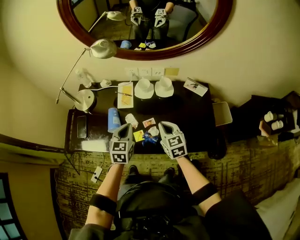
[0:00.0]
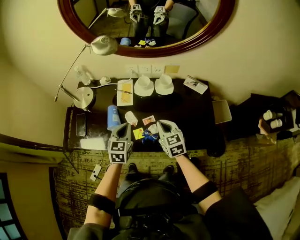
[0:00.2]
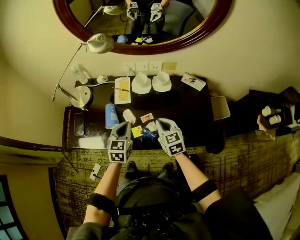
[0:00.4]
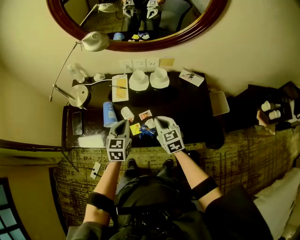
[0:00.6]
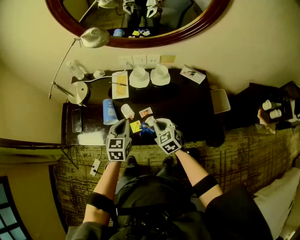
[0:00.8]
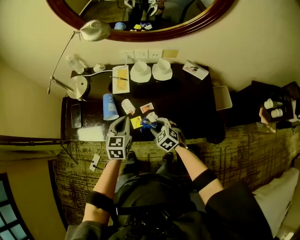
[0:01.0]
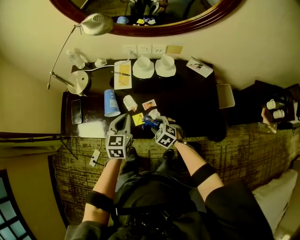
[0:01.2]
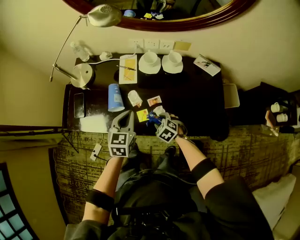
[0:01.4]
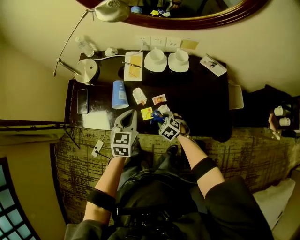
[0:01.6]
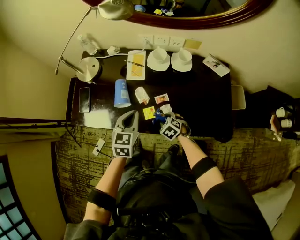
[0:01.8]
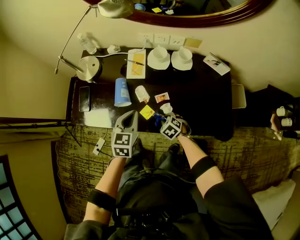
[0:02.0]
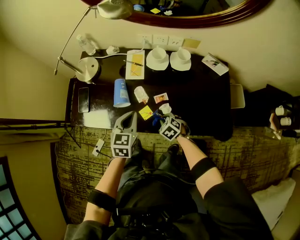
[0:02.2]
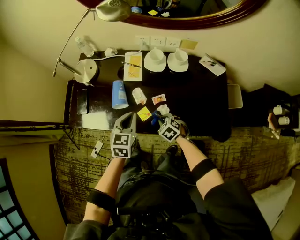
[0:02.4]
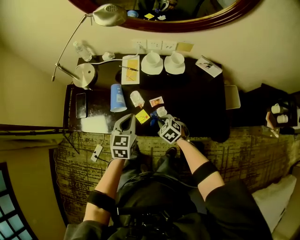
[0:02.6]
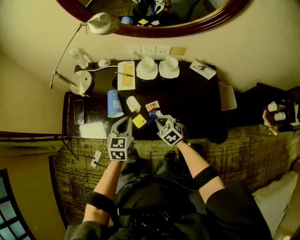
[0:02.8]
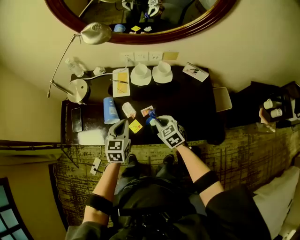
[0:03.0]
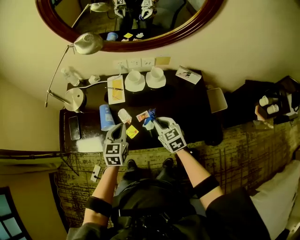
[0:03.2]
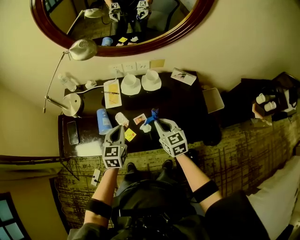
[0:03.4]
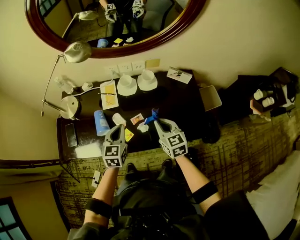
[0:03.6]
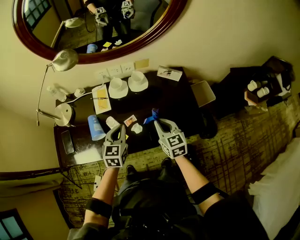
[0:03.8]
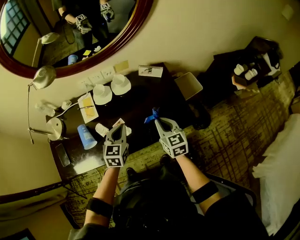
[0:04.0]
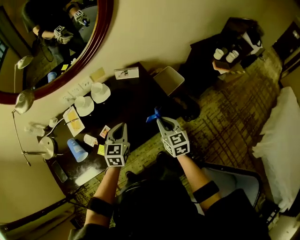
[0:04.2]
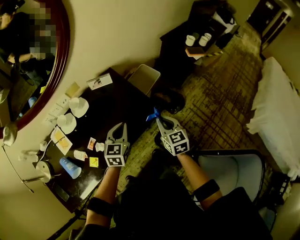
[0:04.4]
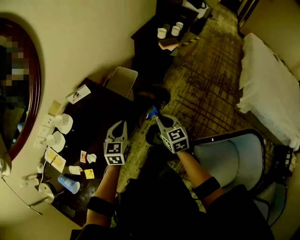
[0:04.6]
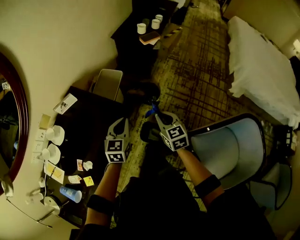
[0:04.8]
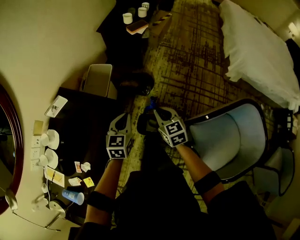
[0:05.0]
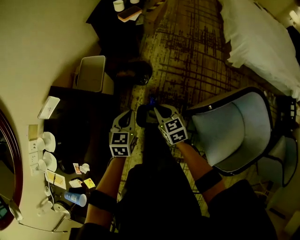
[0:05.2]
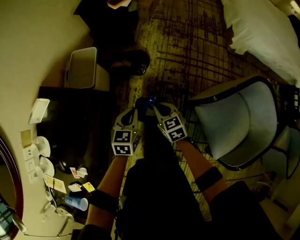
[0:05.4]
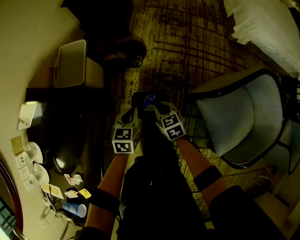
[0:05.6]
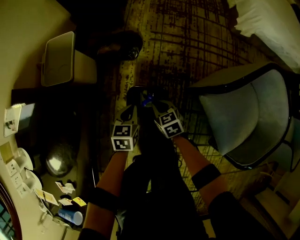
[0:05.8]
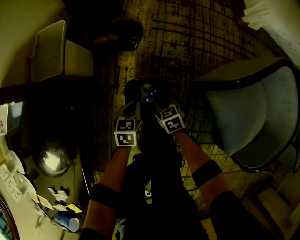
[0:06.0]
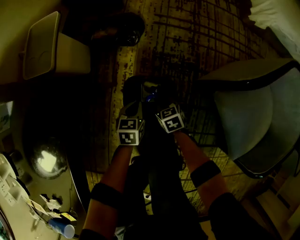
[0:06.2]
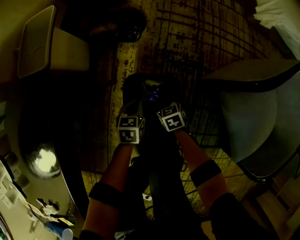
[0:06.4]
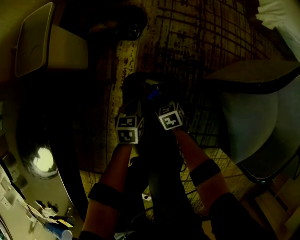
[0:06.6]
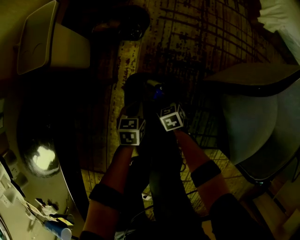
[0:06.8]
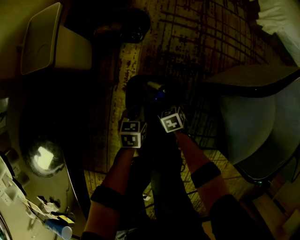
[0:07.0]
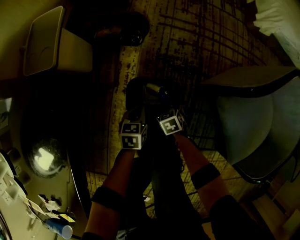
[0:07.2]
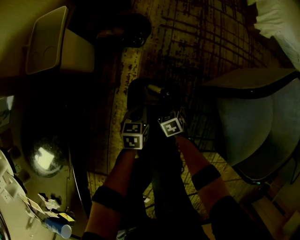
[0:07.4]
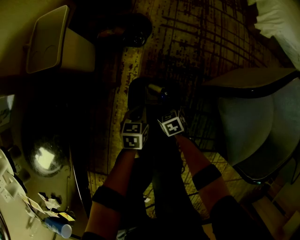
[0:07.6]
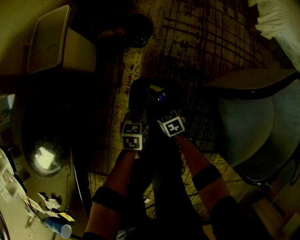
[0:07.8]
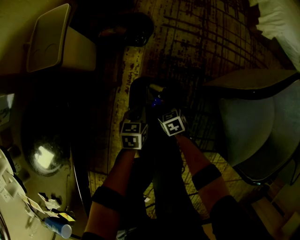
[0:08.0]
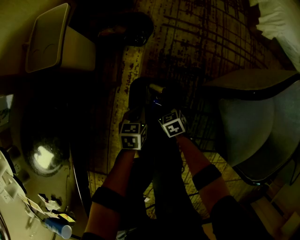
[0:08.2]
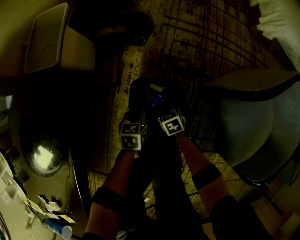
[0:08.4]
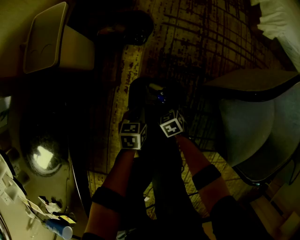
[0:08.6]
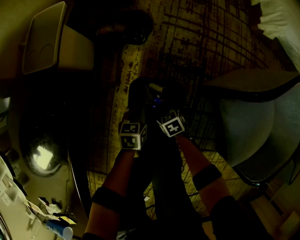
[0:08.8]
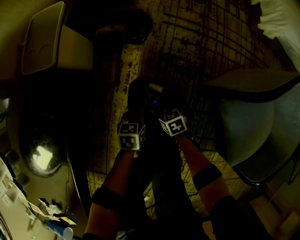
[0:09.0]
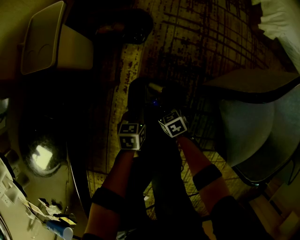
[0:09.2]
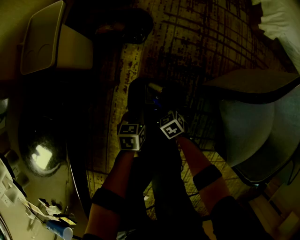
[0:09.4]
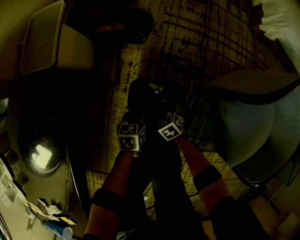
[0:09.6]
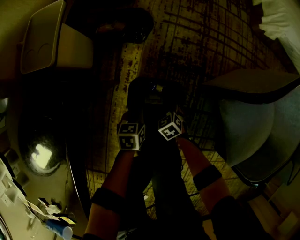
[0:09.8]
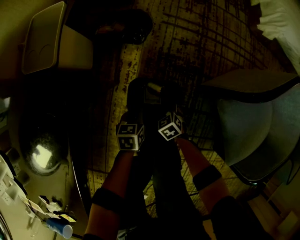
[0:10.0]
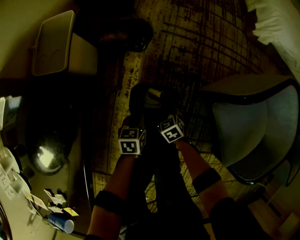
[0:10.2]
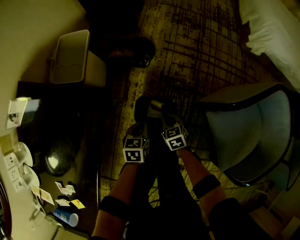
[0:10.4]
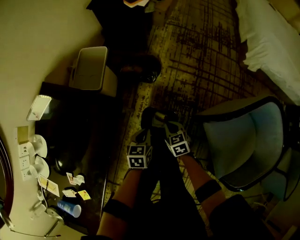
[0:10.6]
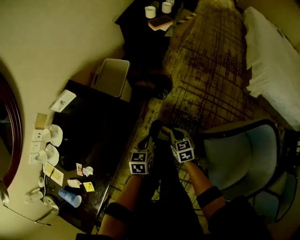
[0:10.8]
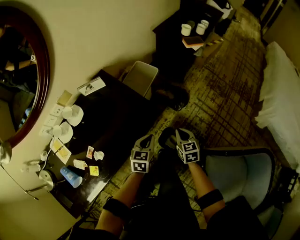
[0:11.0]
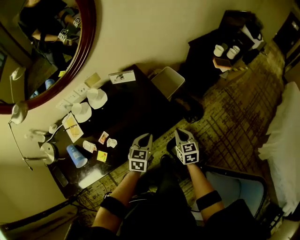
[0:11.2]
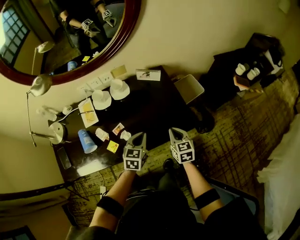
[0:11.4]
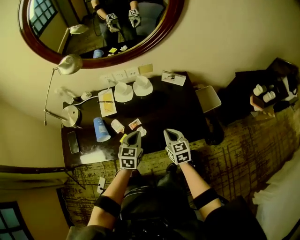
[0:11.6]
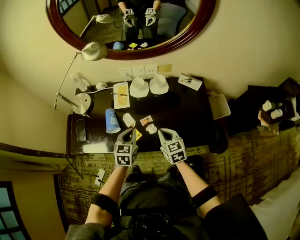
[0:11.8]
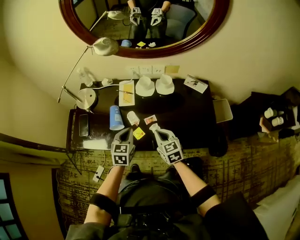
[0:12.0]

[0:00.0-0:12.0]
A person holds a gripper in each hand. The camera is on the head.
0:00.0 to 0:01.6: The right gripper heads downward, covering approximately 25 cm, angles its fingers downward, by some 40 degrees, and opens its fingers. Meanwhile the left gripper ends up about 5 cm from where it was.
0:01.6 to 0:03.0: The right gripper travels upward by approximately 15 cm, rotates approximately 30 degrees, and closes up.
0:03.0 to 0:04.4: The right gripper moves about 40 cm, and rotates about 60 degrees. The left gripper moves roughly 35 cm, and swivels some 40 degrees.
0:04.4 to 0:06.0: The grippers both shift downward by about 50 cm. The right gripper swivels approximately 40 degrees. Meanwhile the left gripper turns by about 50 degrees.
0:06.0 to 0:07.6: Both grippers move downward, some 10 cm. The right gripper opens its fingers.
0:07.6 to 0:09.0: The right gripper closes.
0:09.0 to 0:10.4: The two grippers go roughly 20 cm upward. The right gripper opens and closes again.
0:10.4 to 0:12.0: Both grippers are carried approximately 60 cm. The left gripper turns by roughly 80 degrees. The right gripper rotates approximately 80 degrees.

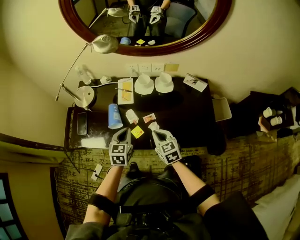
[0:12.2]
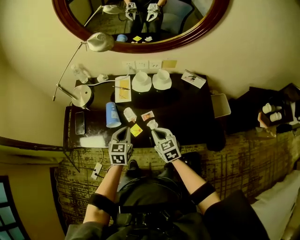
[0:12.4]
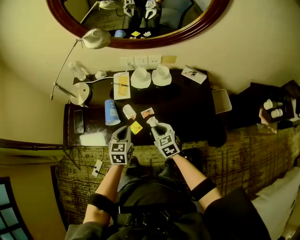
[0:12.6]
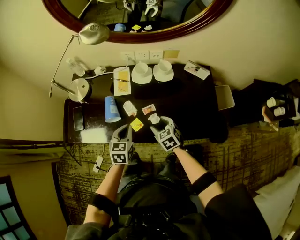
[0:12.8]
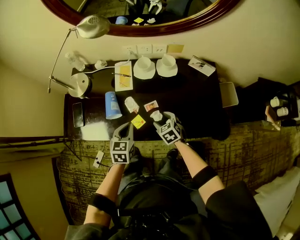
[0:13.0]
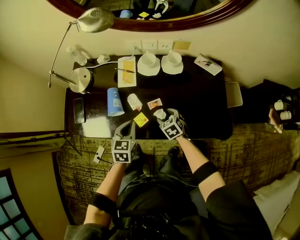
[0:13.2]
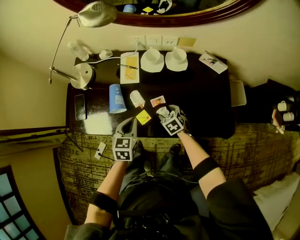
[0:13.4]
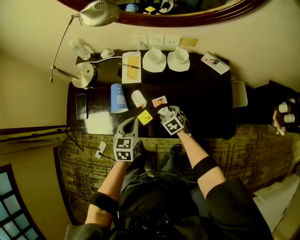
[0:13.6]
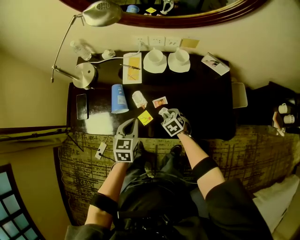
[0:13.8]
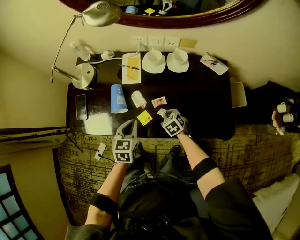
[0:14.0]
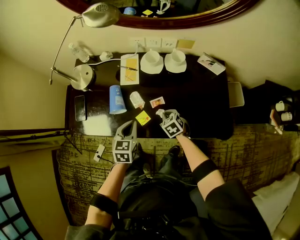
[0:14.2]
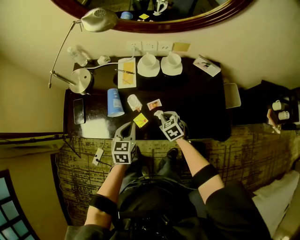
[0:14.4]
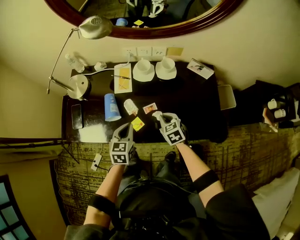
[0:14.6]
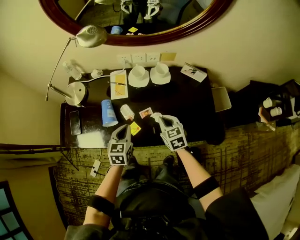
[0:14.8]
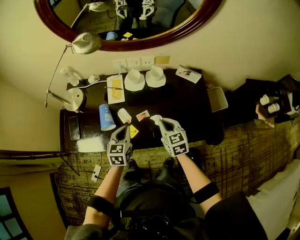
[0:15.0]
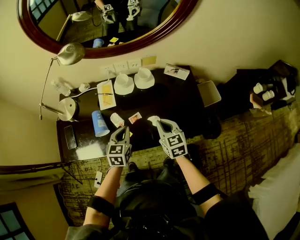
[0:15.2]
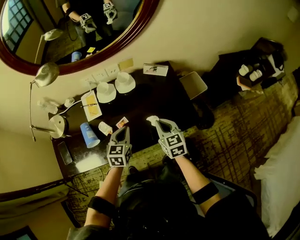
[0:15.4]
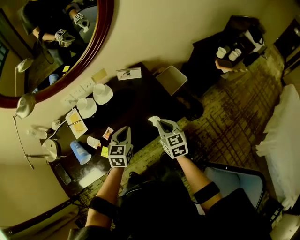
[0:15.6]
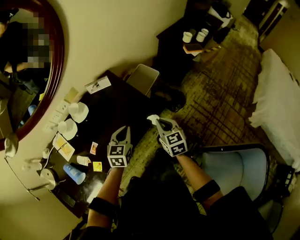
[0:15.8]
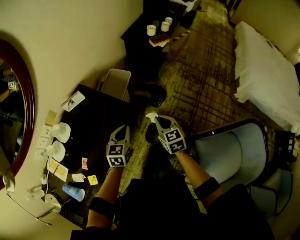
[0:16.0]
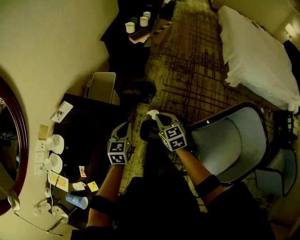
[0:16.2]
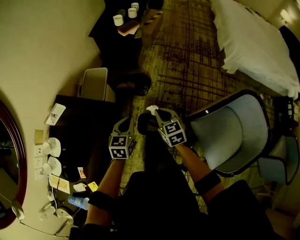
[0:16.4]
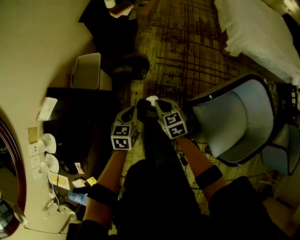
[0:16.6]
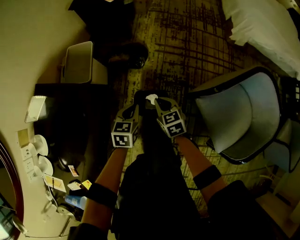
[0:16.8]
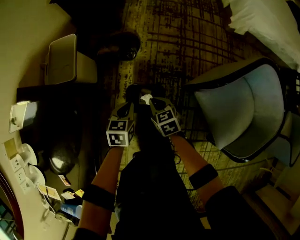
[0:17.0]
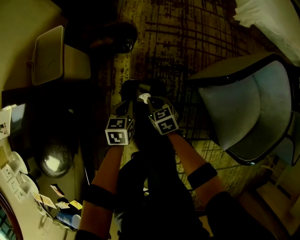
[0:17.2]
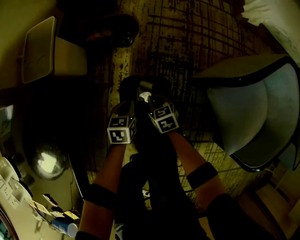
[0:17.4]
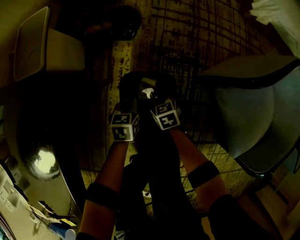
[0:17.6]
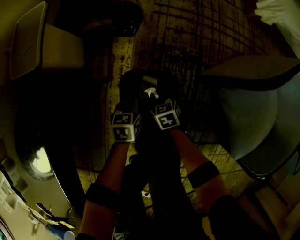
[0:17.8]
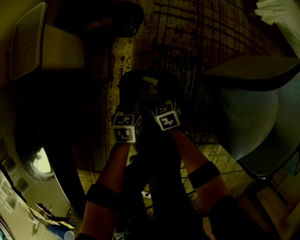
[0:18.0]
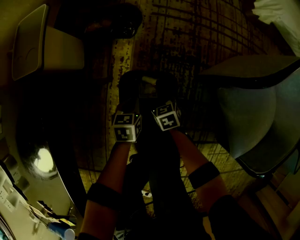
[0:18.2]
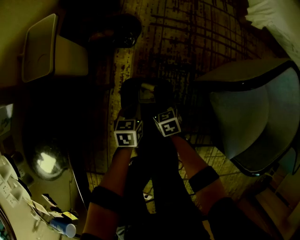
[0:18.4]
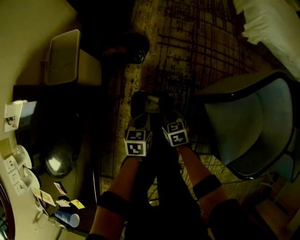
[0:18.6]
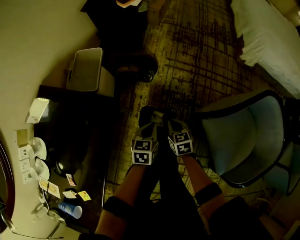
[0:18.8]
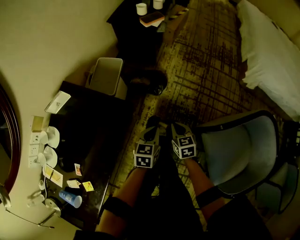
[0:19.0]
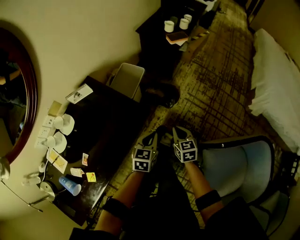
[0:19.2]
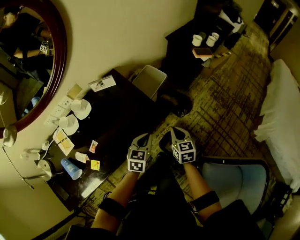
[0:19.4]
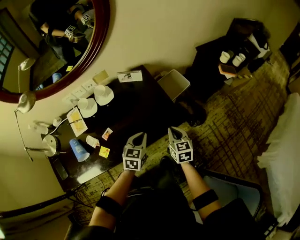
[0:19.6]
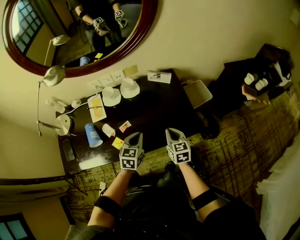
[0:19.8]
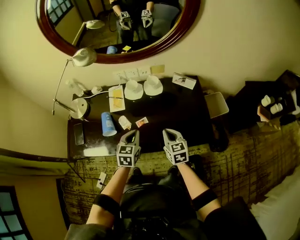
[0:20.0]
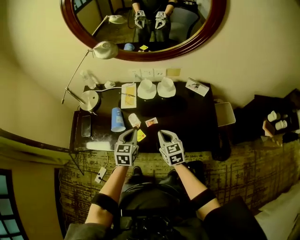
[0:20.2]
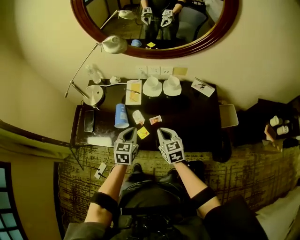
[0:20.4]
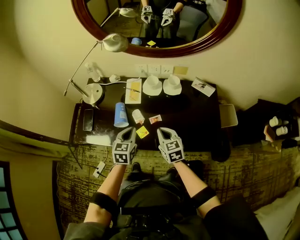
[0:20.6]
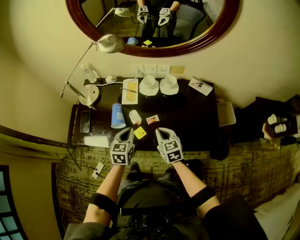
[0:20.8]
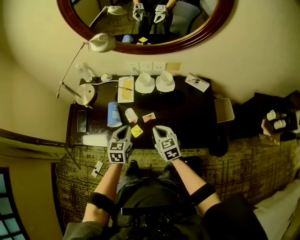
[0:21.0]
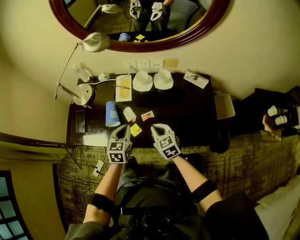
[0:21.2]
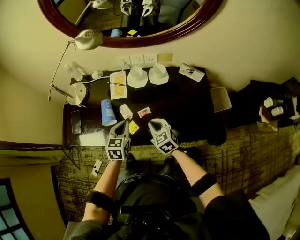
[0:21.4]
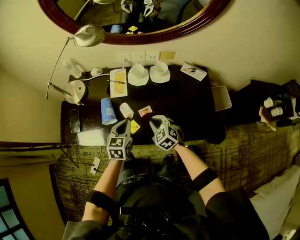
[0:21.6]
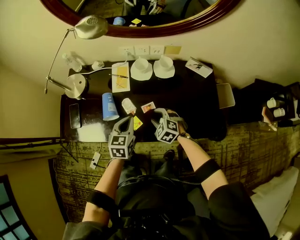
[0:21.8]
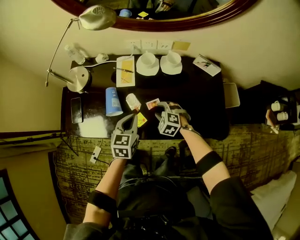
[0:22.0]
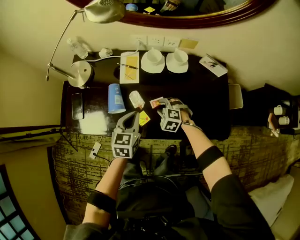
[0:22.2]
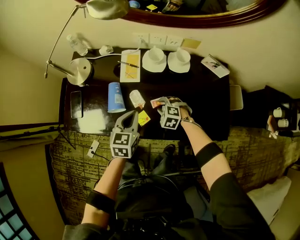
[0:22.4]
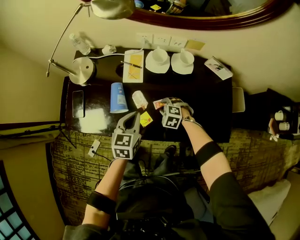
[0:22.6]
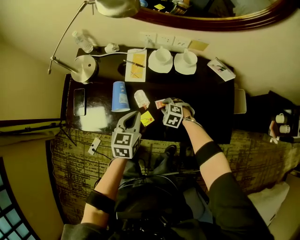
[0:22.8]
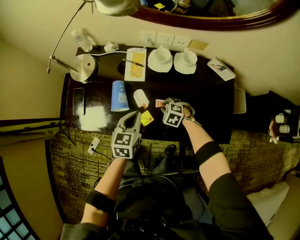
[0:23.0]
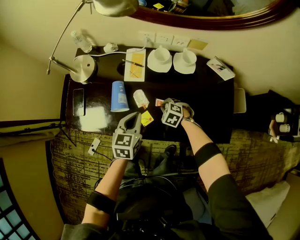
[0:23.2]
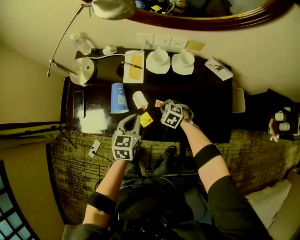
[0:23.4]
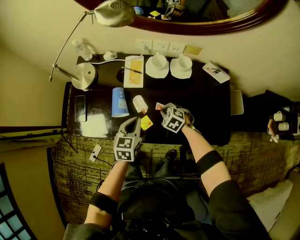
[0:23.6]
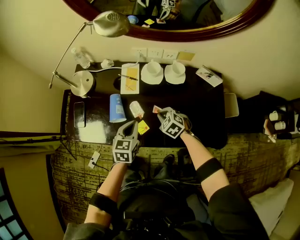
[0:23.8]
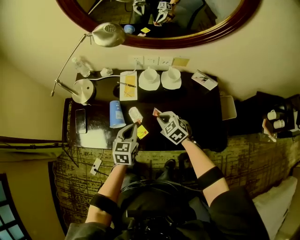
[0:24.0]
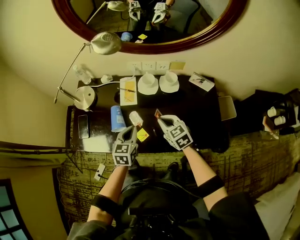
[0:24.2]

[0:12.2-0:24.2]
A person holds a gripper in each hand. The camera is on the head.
0:12.2 to 0:13.8: The right gripper is displaced downward by some 20 cm, turns by about 30 degrees, and opens, then closes again; the left gripper goes roughly 5 cm downward.
0:13.8 to 0:15.2: The left gripper moves to the right, some 10 cm; the right gripper shifts approximately 25 cm upward, and angles its fingers upward, by some 30 degrees.
0:15.2 to 0:16.6: Both grippers are carried roughly 50 cm. The right gripper turns by about 70 degrees. The left gripper swivels about 70 degrees.
0:16.6 to 0:18.2: Both grippers move downward, some 50 cm. The right gripper changes its angle by some 20 degrees, and opens.
0:18.2 to 0:19.8: The two grippers go some 60 cm upward. The right gripper rotates roughly 60 degrees, and closes its fingers, while the left gripper turns by roughly 60 degrees.
0:19.8 to 0:21.2: The right gripper ends up about 20 cm from where it was, and rotates approximately 40 degrees. Meanwhile the left gripper moves approximately 20 cm, and rotates roughly 30 degrees.
0:21.2 to 0:22.6: The left gripper moves roughly 5 cm. The right gripper shifts approximately 20 cm downward and forward, points its fingers about 30 degrees further downward, and opens up.
0:22.6 to 0:24.2: The right gripper goes roughly 20 cm upward, and points its fingers approximately 30 degrees further upward.
